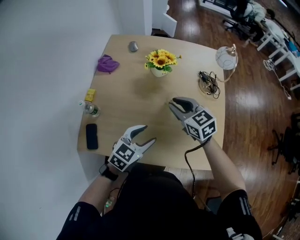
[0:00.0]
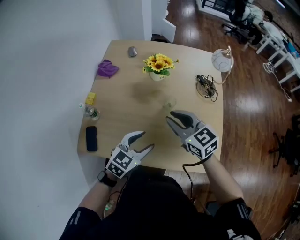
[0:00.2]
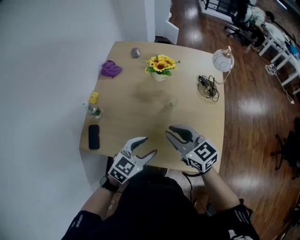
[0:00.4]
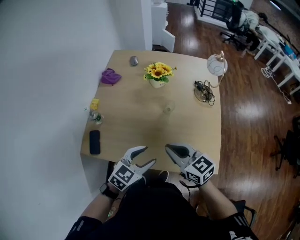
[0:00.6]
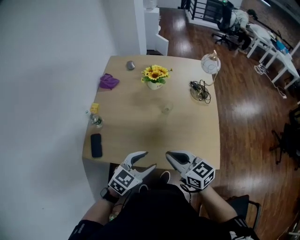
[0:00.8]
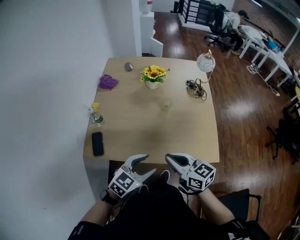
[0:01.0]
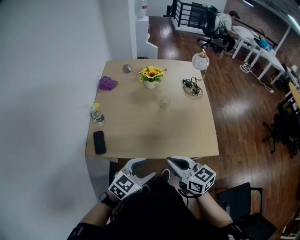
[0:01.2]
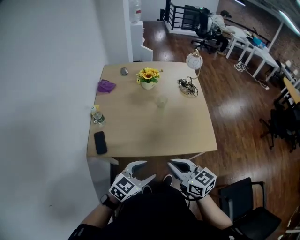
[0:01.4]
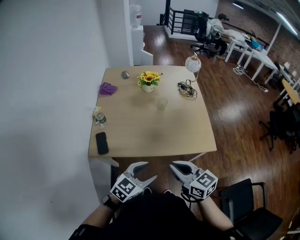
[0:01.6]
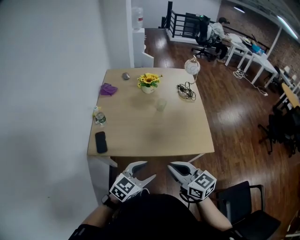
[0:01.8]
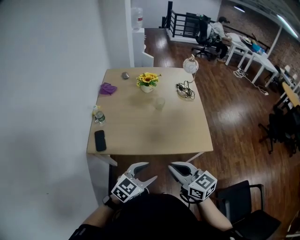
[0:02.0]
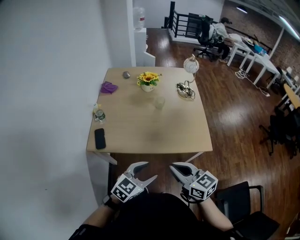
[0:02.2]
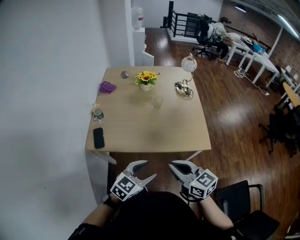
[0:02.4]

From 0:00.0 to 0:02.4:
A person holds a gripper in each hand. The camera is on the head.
From 0:00.0 to 0:01.2: Both grippers travel together backward, about 30 cm. The right gripper turns by about 20 degrees, and closes up.
From 0:01.2 to 0:02.4: The left gripper heads backward, covering some 10 cm. Meanwhile the right gripper goes about 10 cm backward and to the right.

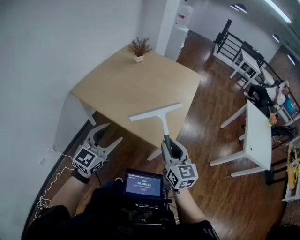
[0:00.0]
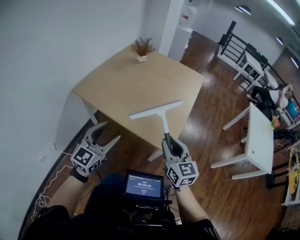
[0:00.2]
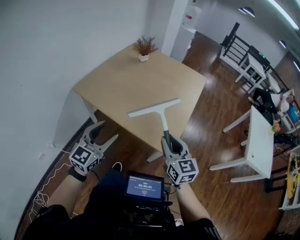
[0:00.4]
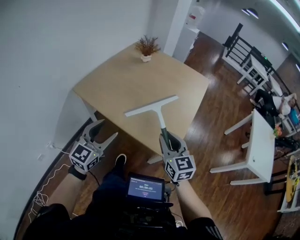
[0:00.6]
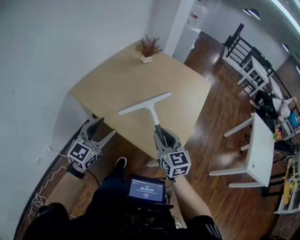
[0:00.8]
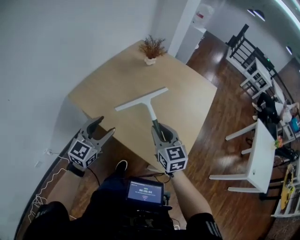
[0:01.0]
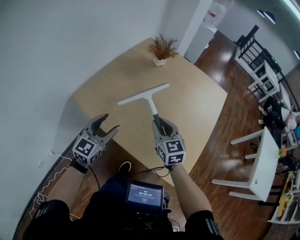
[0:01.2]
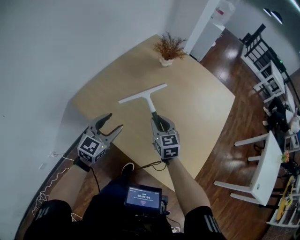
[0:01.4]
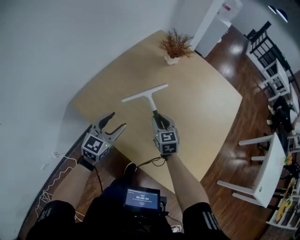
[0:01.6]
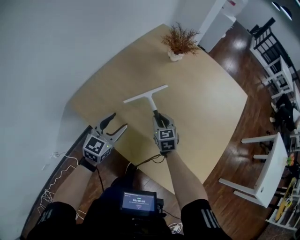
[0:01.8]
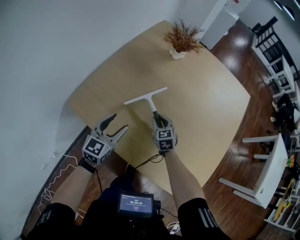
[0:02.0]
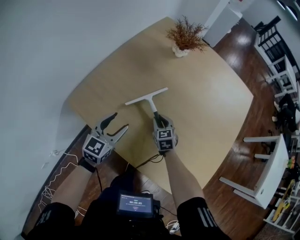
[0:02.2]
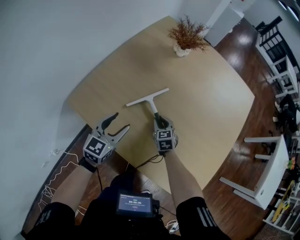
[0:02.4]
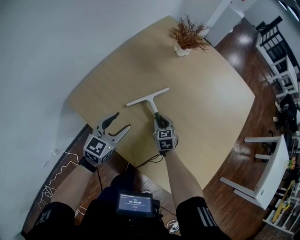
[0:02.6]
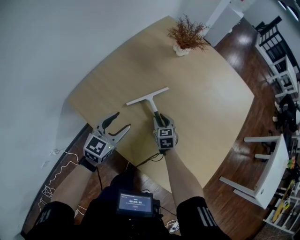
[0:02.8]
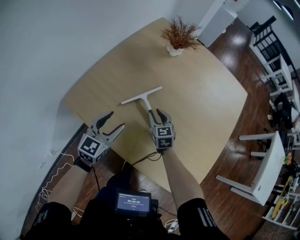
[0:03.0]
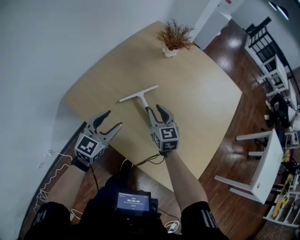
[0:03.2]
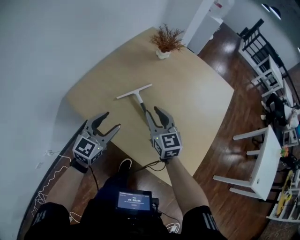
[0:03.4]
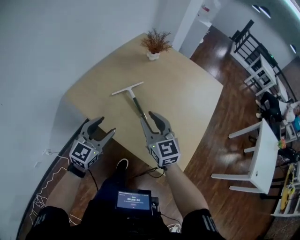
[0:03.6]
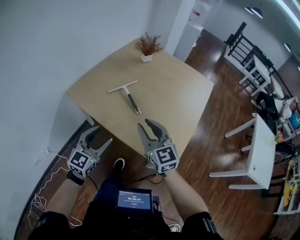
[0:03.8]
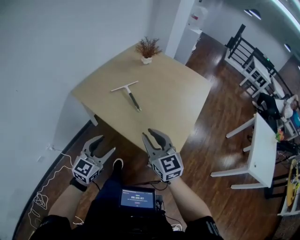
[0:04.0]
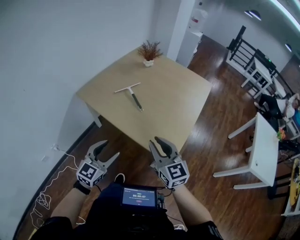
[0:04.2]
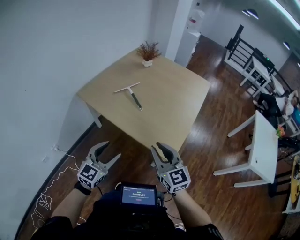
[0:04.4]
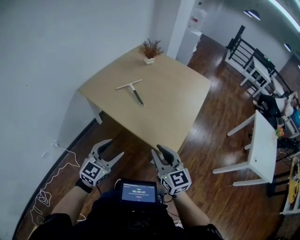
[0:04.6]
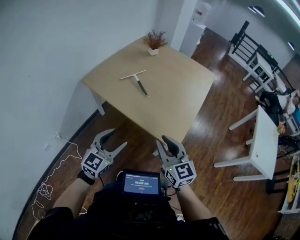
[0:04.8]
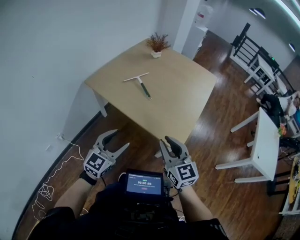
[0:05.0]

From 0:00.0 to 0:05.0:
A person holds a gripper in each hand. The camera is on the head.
From 0:00.0 to 0:01.6: The pair of grippers is taken forward and to the left, roughly 50 cm. Both grippers travel together downward, about 20 cm. The right gripper swivels some 20 degrees.
From 0:01.6 to 0:03.4: The left gripper goes downward and returns, about 5 cm each way, while the right gripper moves upward, roughly 10 cm.
From 0:03.4 to 0:05.0: Both grippers travel together backward, approximately 40 cm.

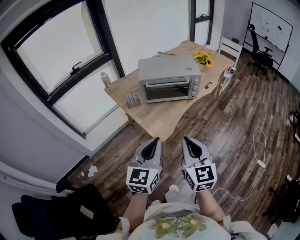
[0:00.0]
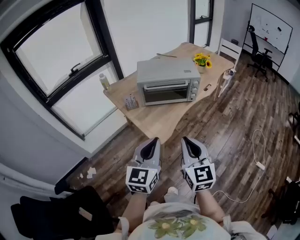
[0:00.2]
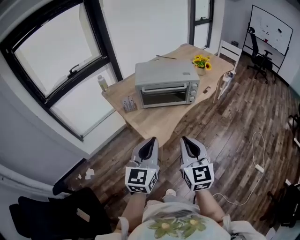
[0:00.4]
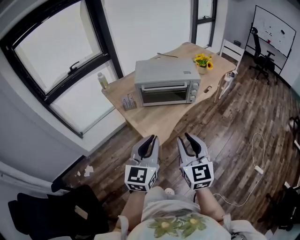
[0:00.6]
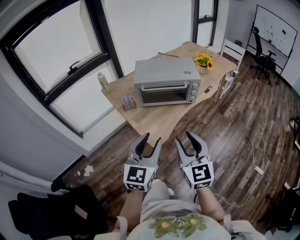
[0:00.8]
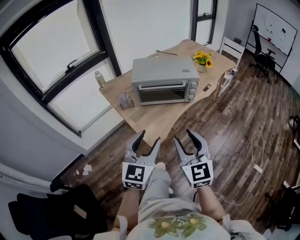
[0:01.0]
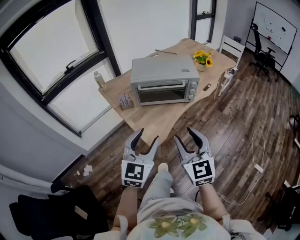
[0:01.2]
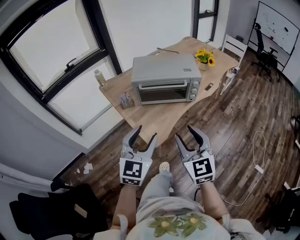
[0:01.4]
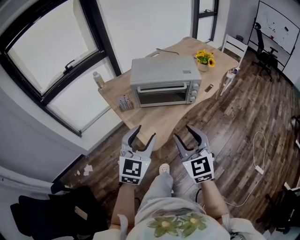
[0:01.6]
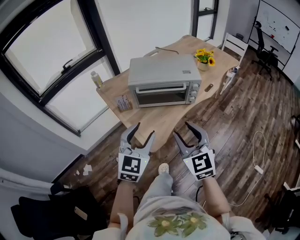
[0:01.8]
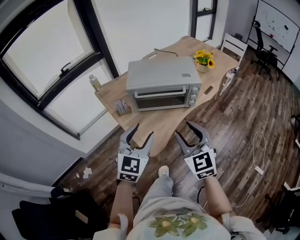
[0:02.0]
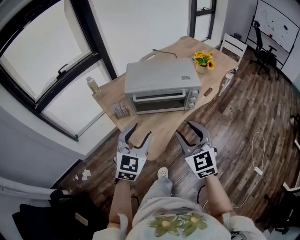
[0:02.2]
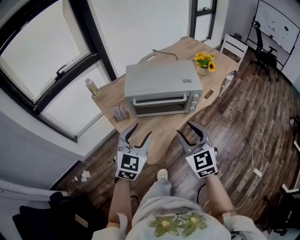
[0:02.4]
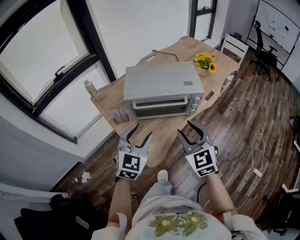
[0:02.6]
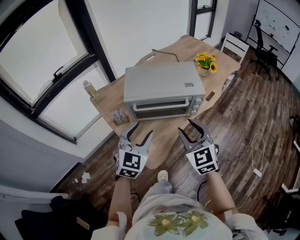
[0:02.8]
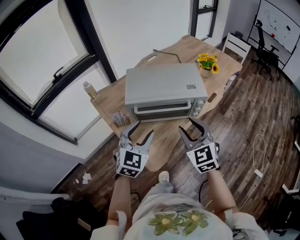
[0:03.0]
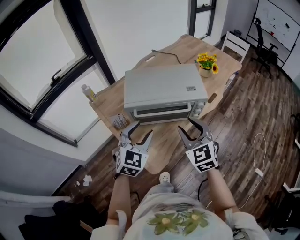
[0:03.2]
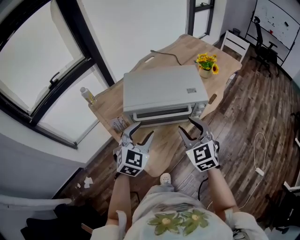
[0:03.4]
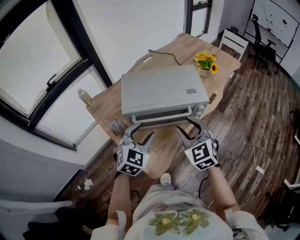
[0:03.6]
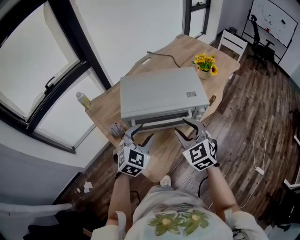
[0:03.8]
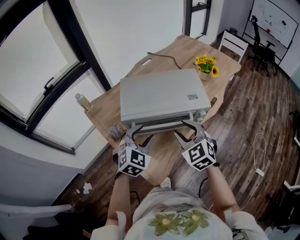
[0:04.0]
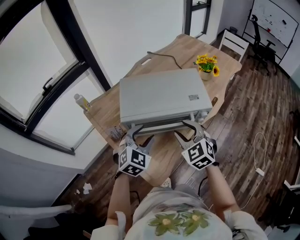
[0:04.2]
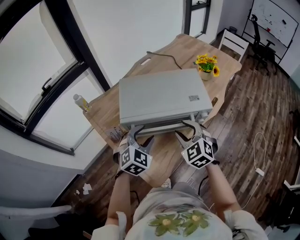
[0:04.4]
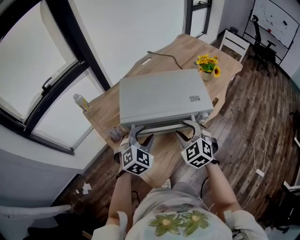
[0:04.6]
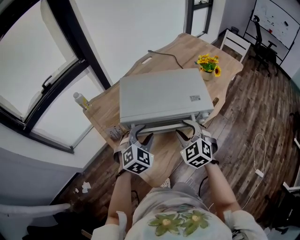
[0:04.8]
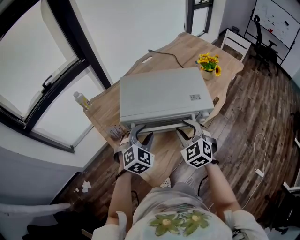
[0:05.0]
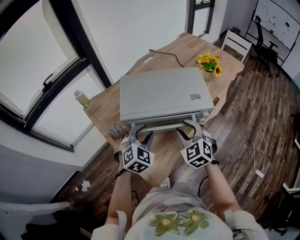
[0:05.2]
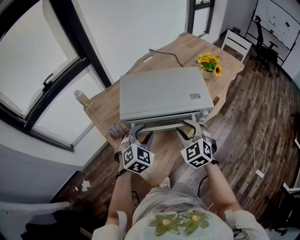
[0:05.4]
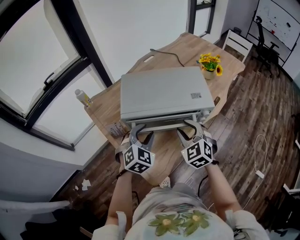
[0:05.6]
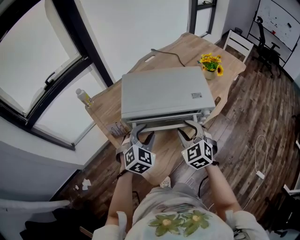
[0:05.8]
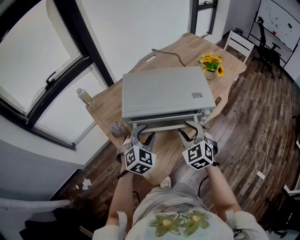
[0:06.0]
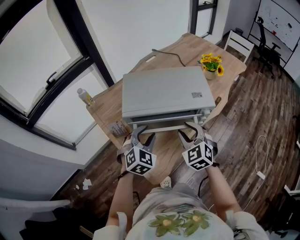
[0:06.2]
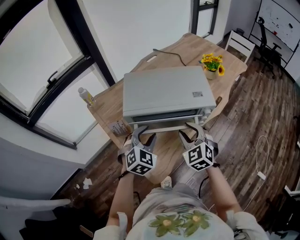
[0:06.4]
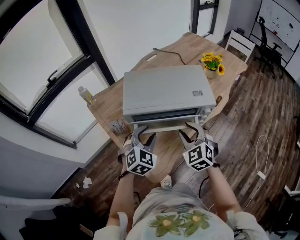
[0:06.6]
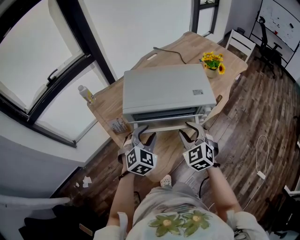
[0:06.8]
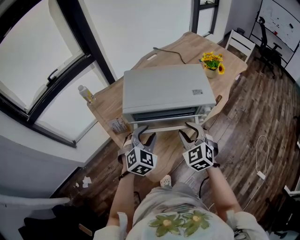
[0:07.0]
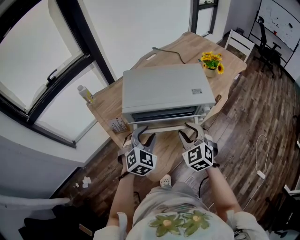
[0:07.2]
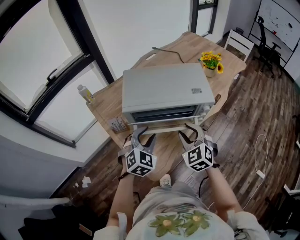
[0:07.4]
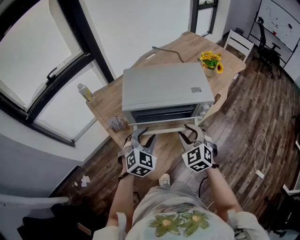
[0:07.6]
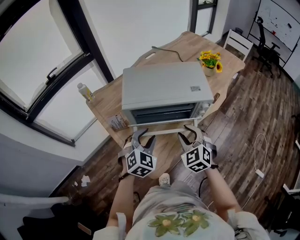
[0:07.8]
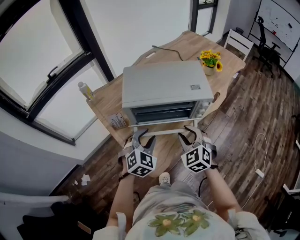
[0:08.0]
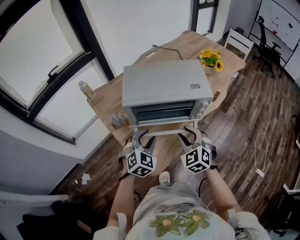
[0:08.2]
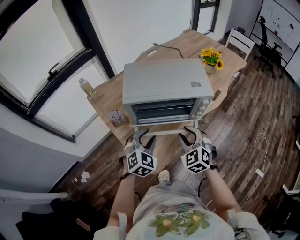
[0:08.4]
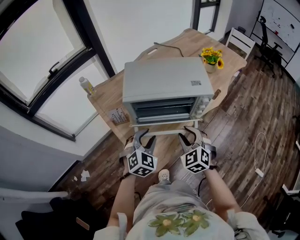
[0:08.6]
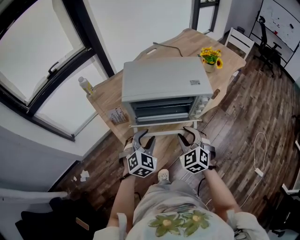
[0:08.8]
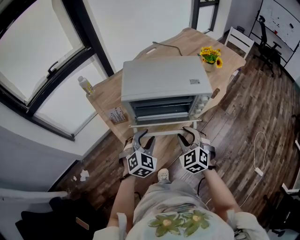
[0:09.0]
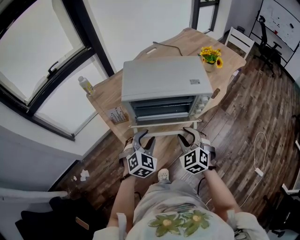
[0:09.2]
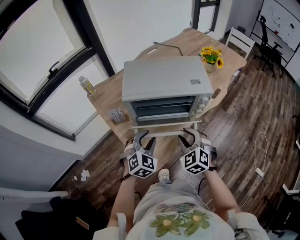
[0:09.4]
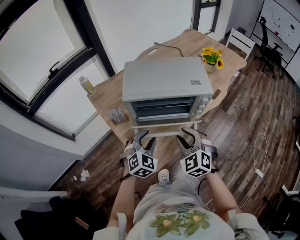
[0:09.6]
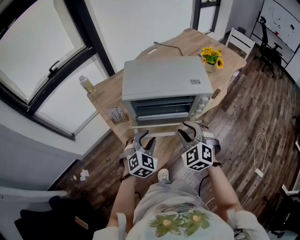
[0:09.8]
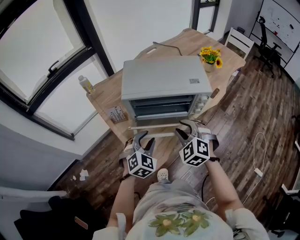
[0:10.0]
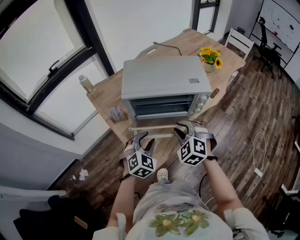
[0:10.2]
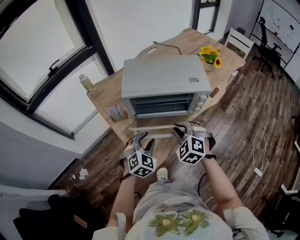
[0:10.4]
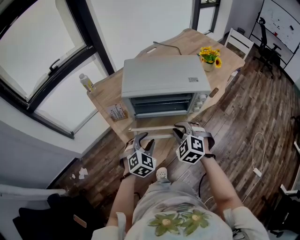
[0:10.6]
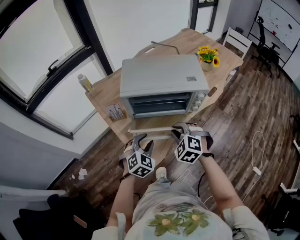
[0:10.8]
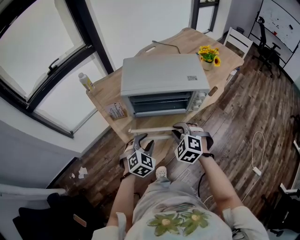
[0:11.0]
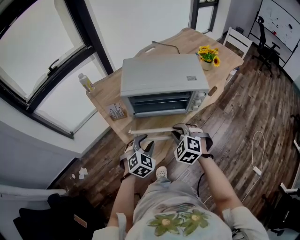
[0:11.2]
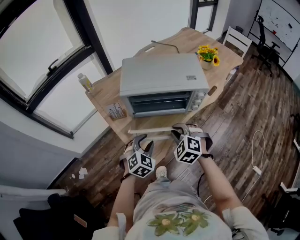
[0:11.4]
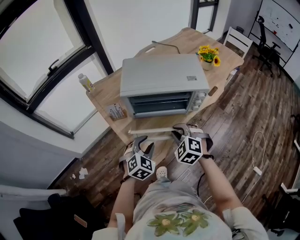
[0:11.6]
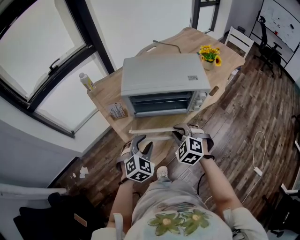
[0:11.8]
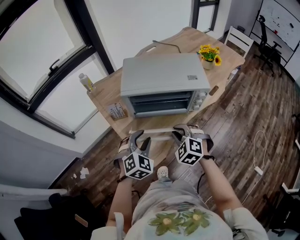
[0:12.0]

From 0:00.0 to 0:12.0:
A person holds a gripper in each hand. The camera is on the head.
From 0:00.0 to 0:01.6: The grippers both shift forward by roughly 10 cm. The right gripper opens. Meanwhile the left gripper swivels about 20 degrees, and opens up.
From 0:01.6 to 0:03.0: Both grippers move forward, about 15 cm.
From 0:03.0 to 0:04.4: The grippers both shift forward and downward by roughly 15 cm.
From 0:04.4 to 0:07.6: The grippers move only a little.
From 0:07.6 to 0:09.0: The left gripper ends up about 5 cm from where it was. The right gripper ends up roughly 5 cm from where it was.
From 0:09.0 to 0:10.4: The grippers stay close to where they were, moving slightly.
From 0:10.4 to 0:12.0: There are only small adjustments of the grippers.

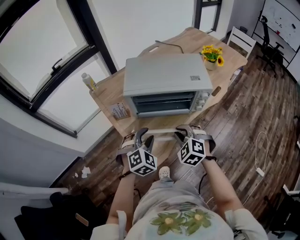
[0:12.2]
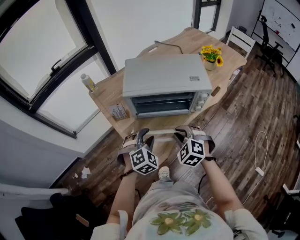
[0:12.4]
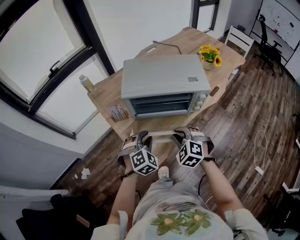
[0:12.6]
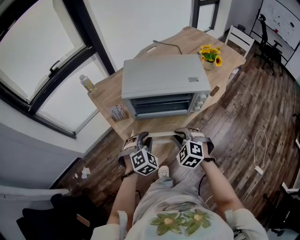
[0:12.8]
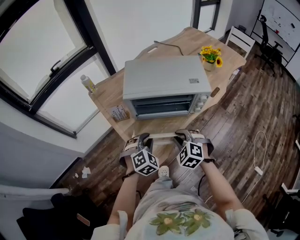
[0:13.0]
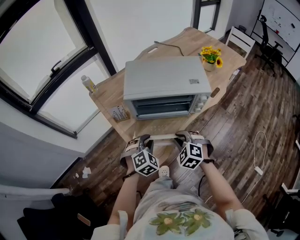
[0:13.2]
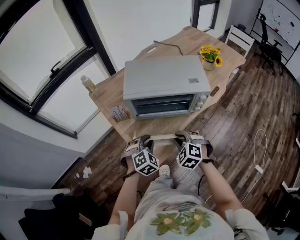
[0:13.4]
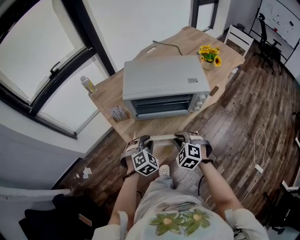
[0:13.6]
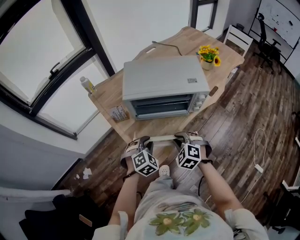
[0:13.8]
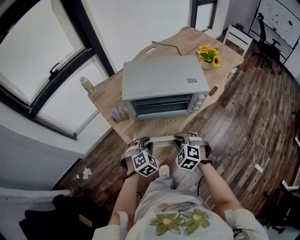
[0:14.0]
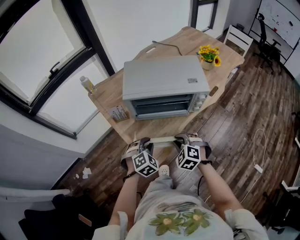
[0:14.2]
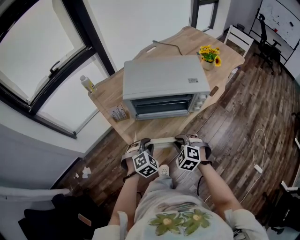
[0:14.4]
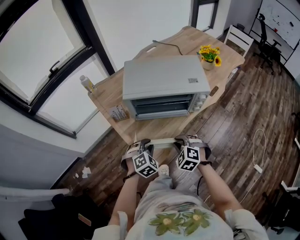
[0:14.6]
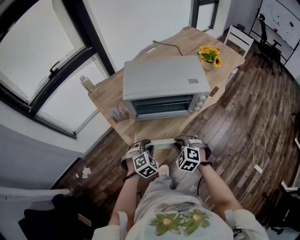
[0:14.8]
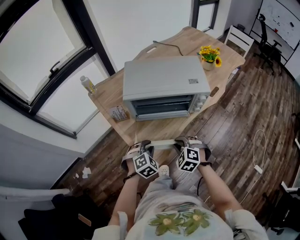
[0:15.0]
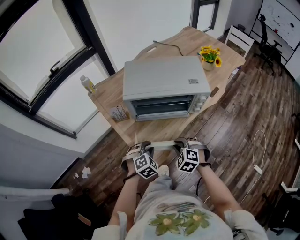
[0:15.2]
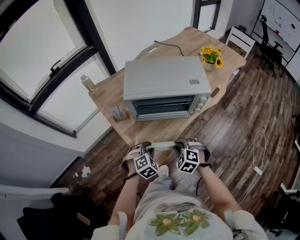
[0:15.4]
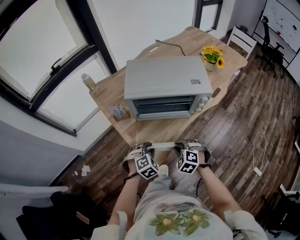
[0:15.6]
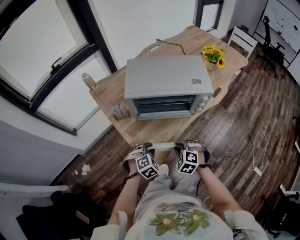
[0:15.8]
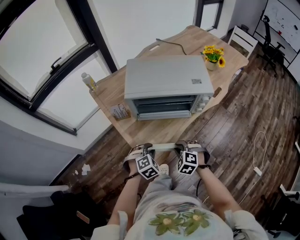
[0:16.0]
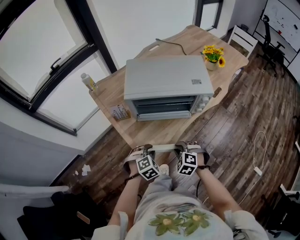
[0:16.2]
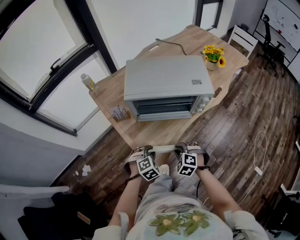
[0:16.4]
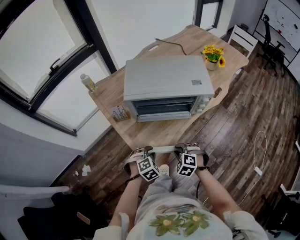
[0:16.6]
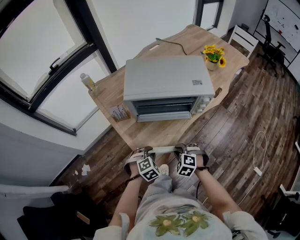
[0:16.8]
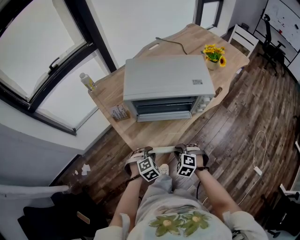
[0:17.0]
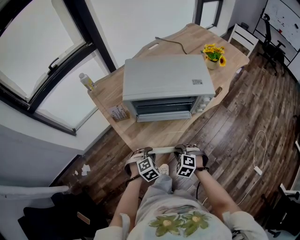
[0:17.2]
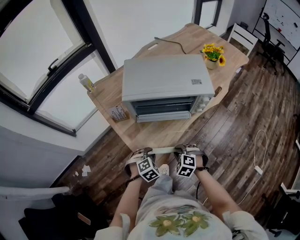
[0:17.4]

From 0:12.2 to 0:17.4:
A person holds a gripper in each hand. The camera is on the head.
From 0:12.2 to 0:14.0: The left gripper heads downward, covering roughly 5 cm.
From 0:14.0 to 0:15.6: The right gripper ends up some 5 cm from where it was. The left gripper shifts approximately 5 cm downward.
From 0:15.6 to 0:17.4: The left gripper heads downward, covering some 5 cm, while the right gripper shifts by about 5 cm.
